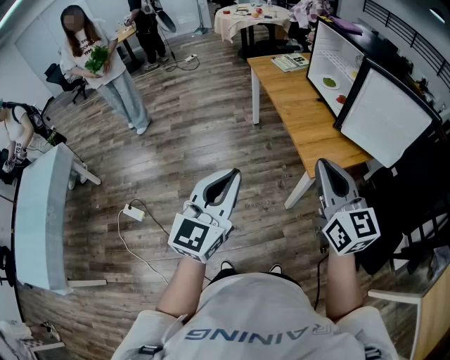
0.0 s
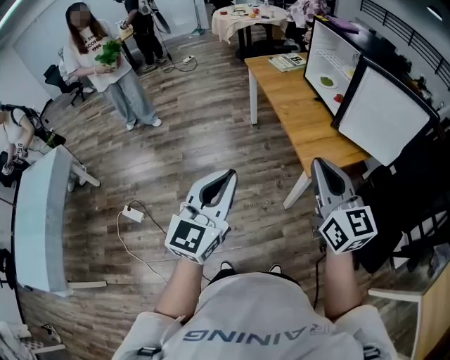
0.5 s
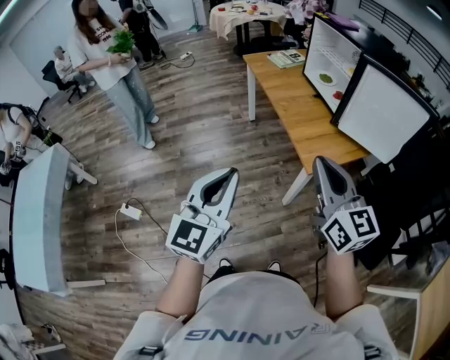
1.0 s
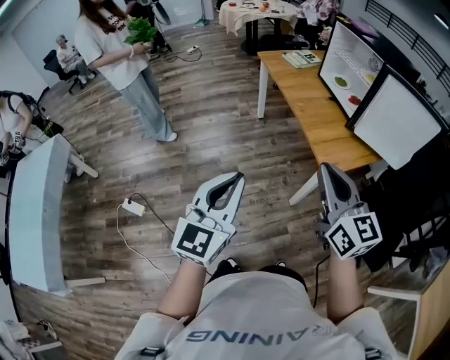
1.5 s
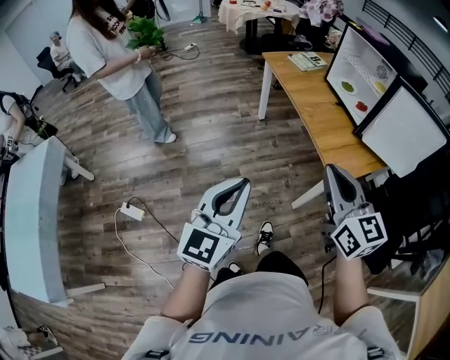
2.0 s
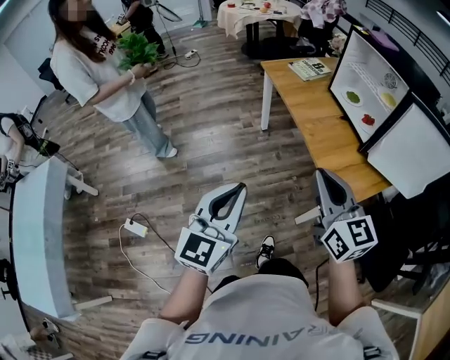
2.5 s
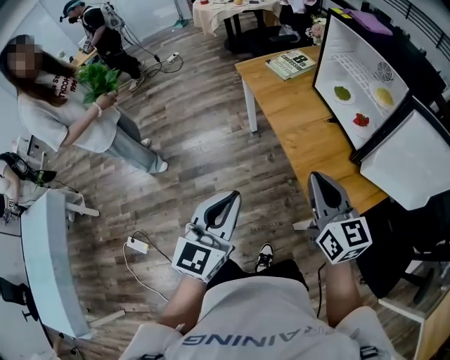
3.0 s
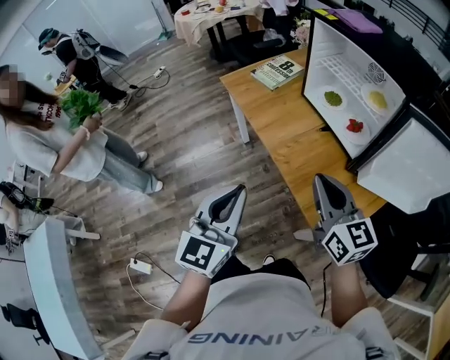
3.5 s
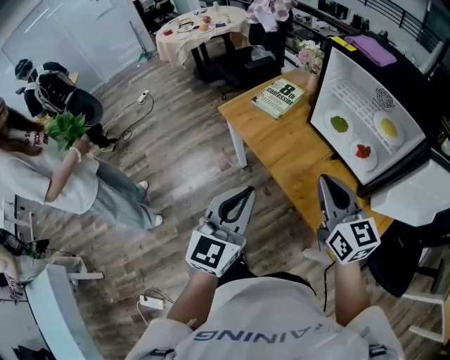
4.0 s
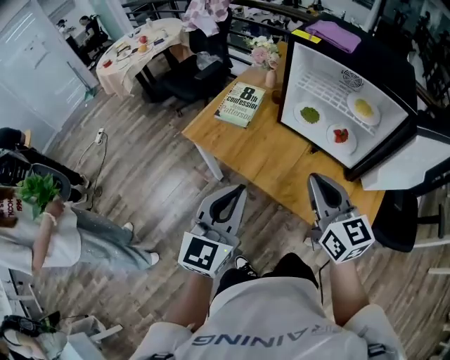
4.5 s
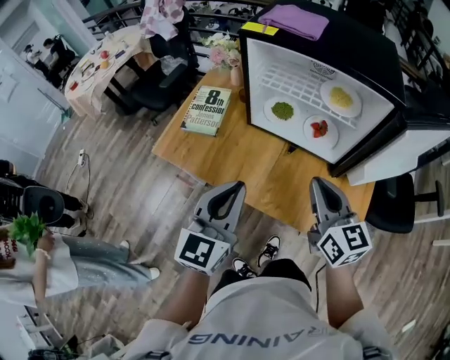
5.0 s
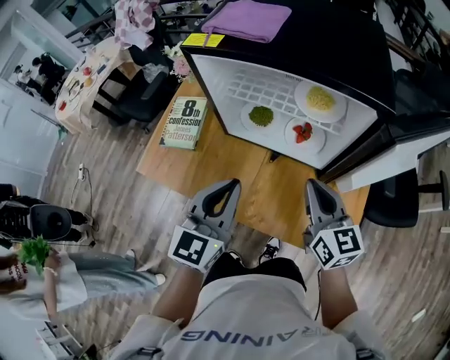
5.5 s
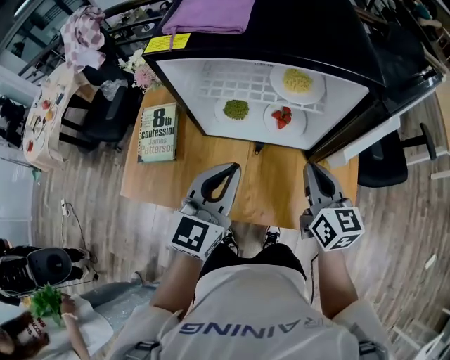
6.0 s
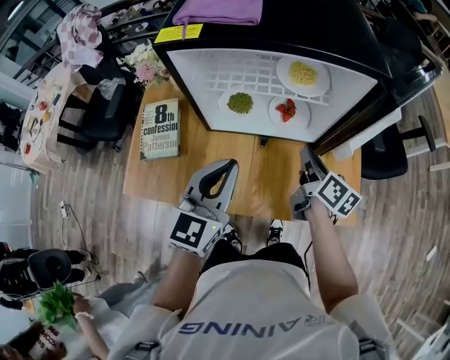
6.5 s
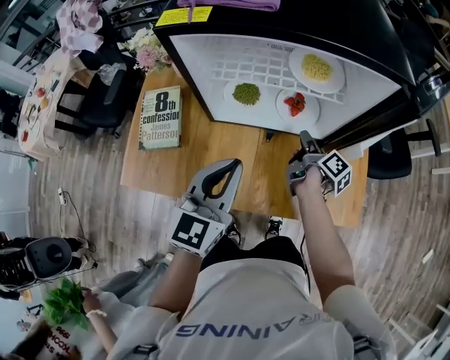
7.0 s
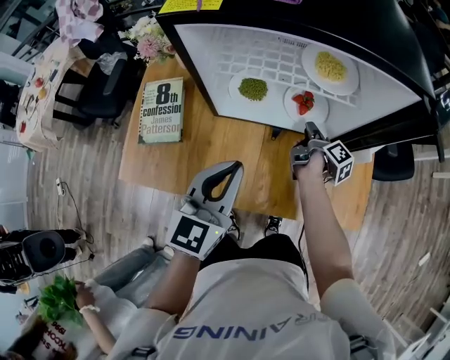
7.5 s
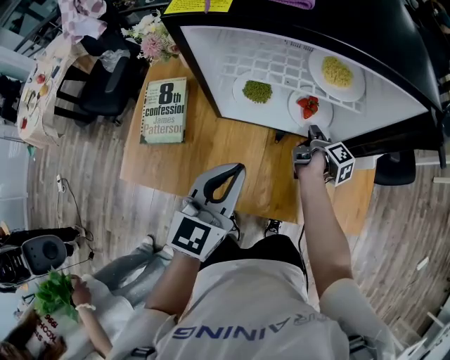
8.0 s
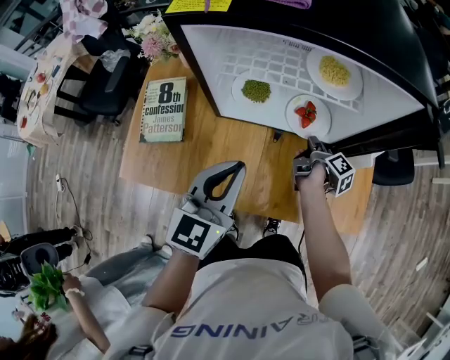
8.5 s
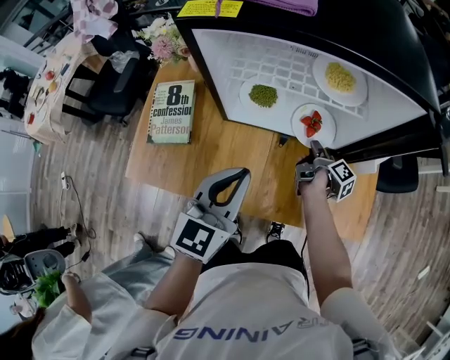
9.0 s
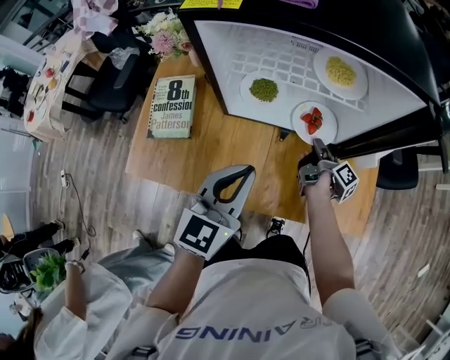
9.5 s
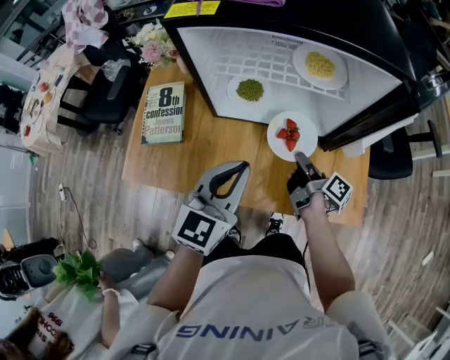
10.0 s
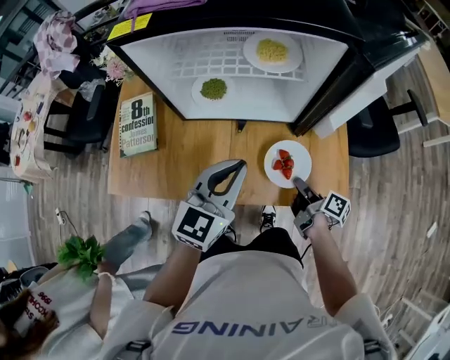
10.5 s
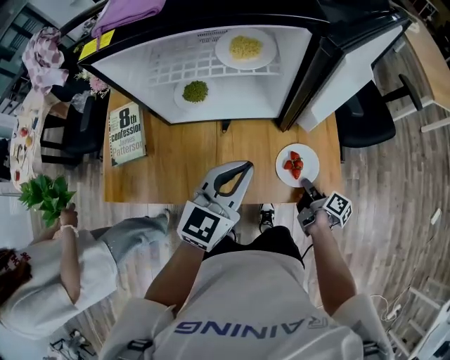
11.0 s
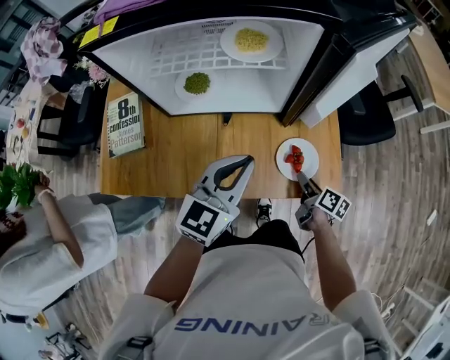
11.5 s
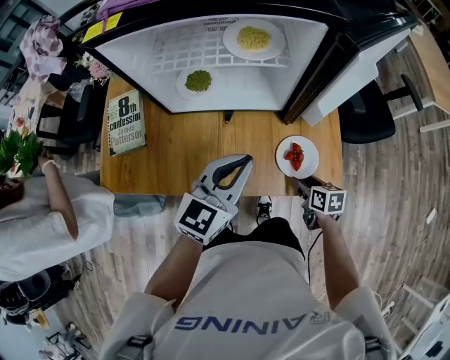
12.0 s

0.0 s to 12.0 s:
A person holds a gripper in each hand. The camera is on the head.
0.0 to 2.0 s: The grippers both shift to the left by roughly 10 cm.
2.0 to 4.0 s: Both grippers are carried forward, roughly 50 cm.
4.0 to 6.0 s: The left gripper moves about 30 cm, and turns by some 50 degrees; the right gripper ends up about 20 cm from where it was, and changes its angle by some 50 degrees.
6.0 to 8.0 s: The right gripper travels downward and forward by some 25 cm, and twists approximately 70 degrees clockwise, seen from behind. The left gripper is displaced downward by approximately 5 cm.
8.0 to 10.0 s: The right gripper goes roughly 15 cm backward and upward, and turns by about 30 degrees.
10.0 to 12.0 s: The left gripper travels to the right by roughly 10 cm. Meanwhile the right gripper is displaced to the right, backward and downward by some 25 cm, tilts its fingers some 30 degrees downward, and opens its fingers.

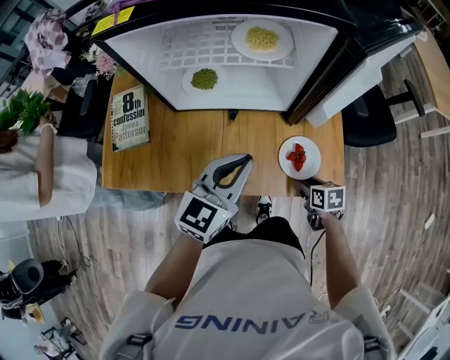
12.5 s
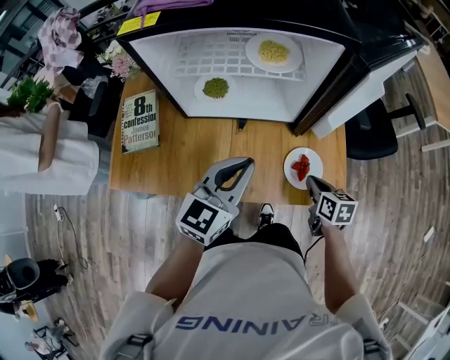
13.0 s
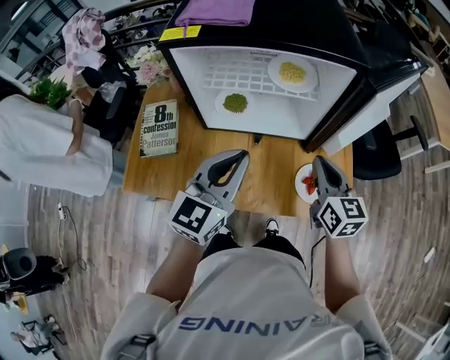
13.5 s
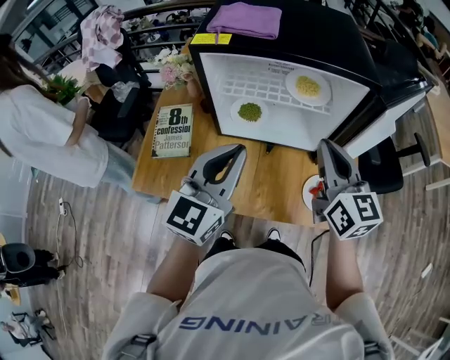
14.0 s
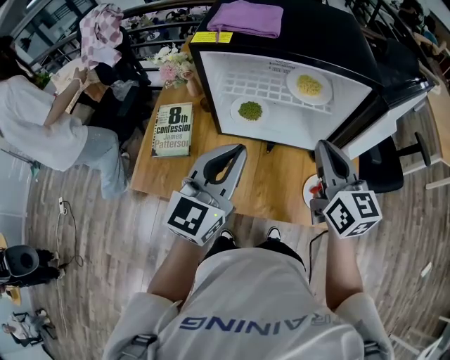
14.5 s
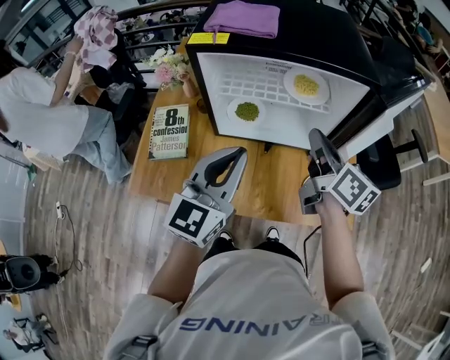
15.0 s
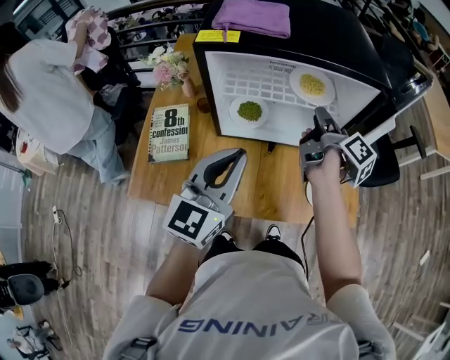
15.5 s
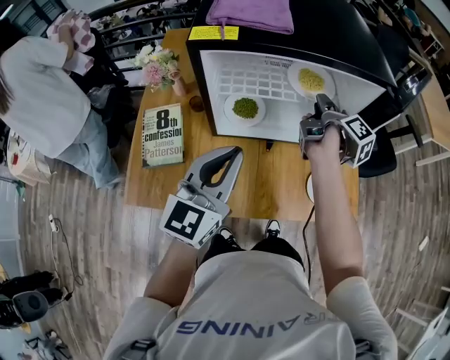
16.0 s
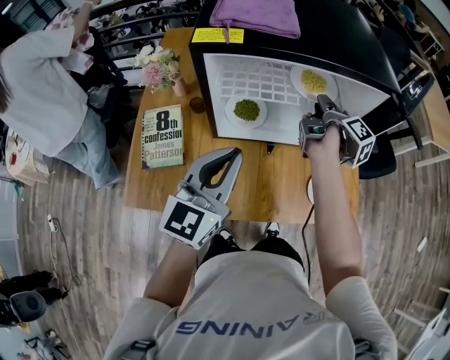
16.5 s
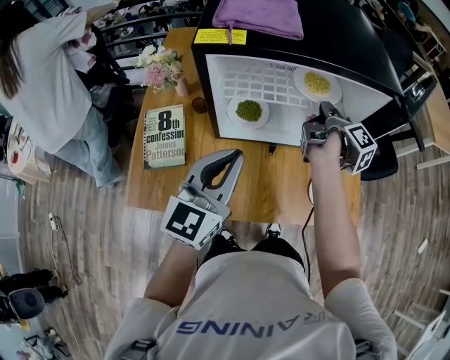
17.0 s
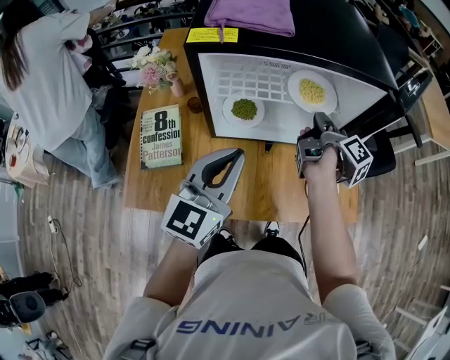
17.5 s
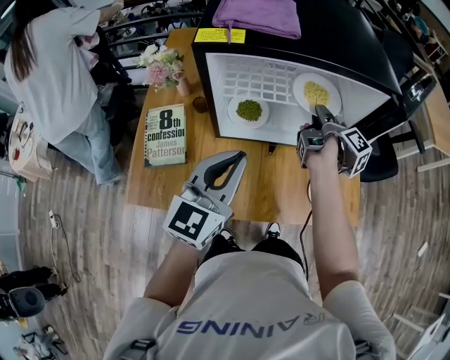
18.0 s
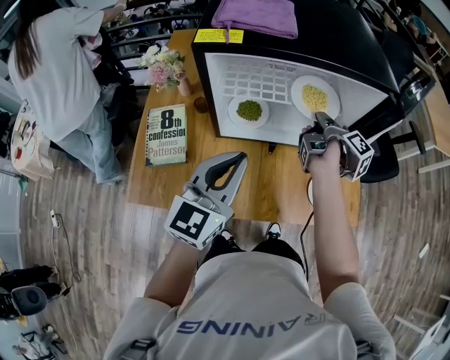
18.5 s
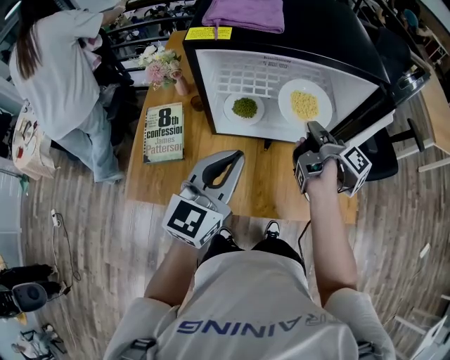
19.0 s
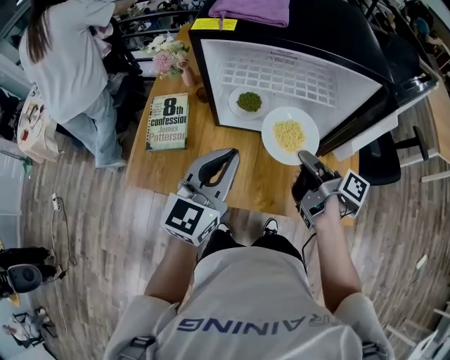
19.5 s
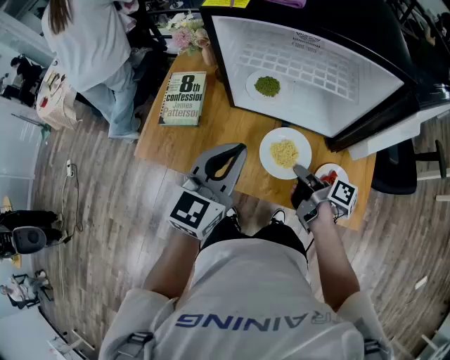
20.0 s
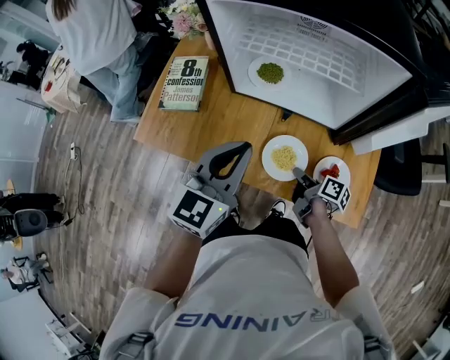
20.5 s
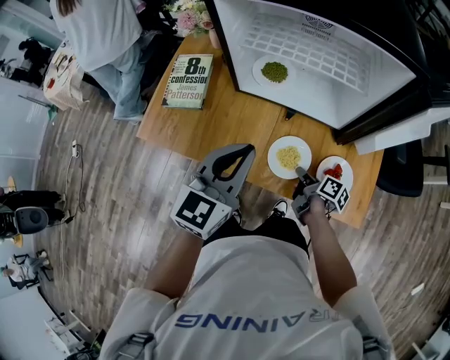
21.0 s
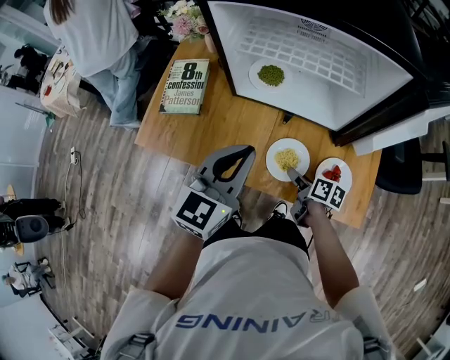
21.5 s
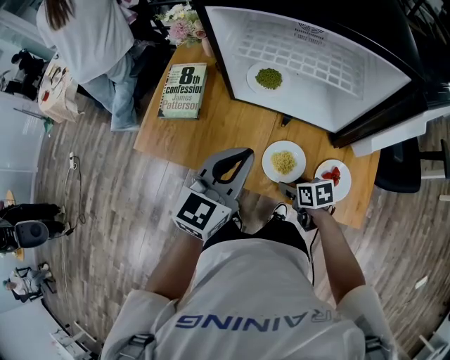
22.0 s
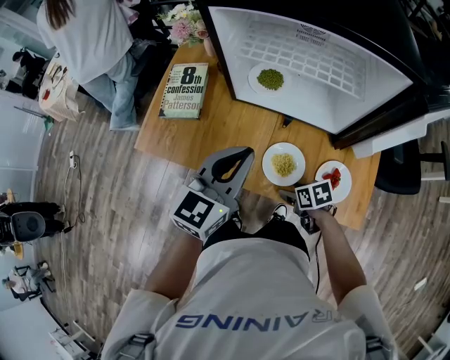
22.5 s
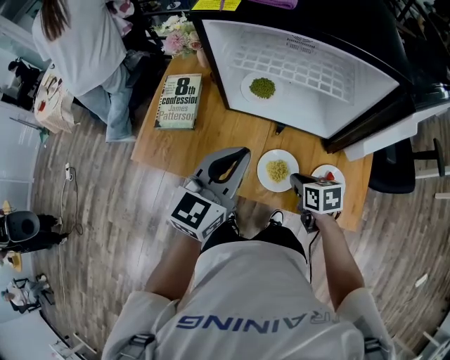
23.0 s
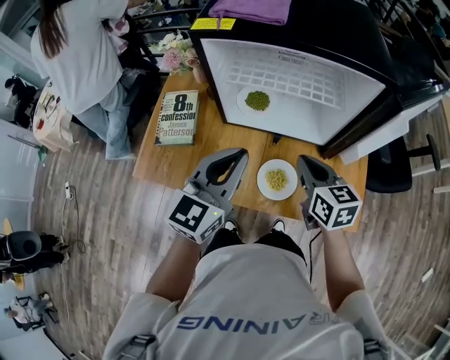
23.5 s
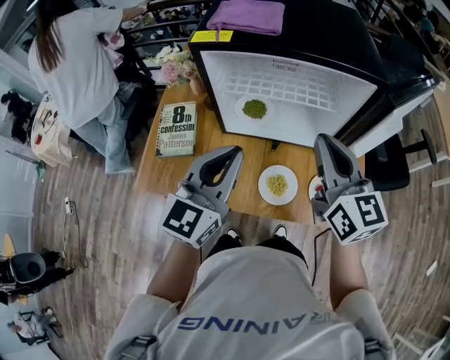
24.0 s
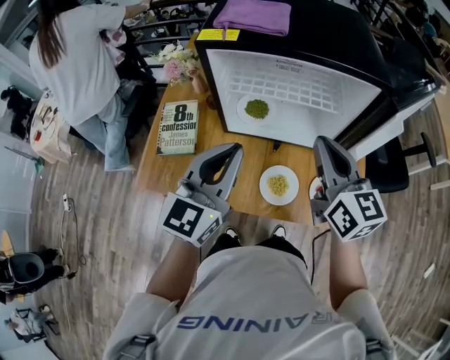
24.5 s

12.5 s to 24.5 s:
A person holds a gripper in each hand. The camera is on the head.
12.5 to 14.5 s: The left gripper shifts about 20 cm upward and to the left, and swivels roughly 20 degrees; the right gripper heads upward and to the left, covering about 40 cm, tips its fingers upward by roughly 50 degrees, and closes.
14.5 to 16.5 s: The left gripper ends up roughly 5 cm from where it was. Meanwhile the right gripper shifts approximately 20 cm forward and downward, and twists approximately 70 degrees clockwise, seen from behind.
16.5 to 18.5 s: The grippers stay close to where they were, moving slightly.
18.5 to 20.5 s: The right gripper is displaced downward by about 20 cm, and changes its angle by some 50 degrees, while the left gripper shifts by some 10 cm.
20.5 to 22.5 s: The right gripper moves some 5 cm, twists roughly 50 degrees counterclockwise, seen from behind, and opens its fingers.
22.5 to 24.5 s: The right gripper travels upward by approximately 40 cm, tilts its fingers roughly 50 degrees upward, and closes. The left gripper moves upward, about 10 cm.

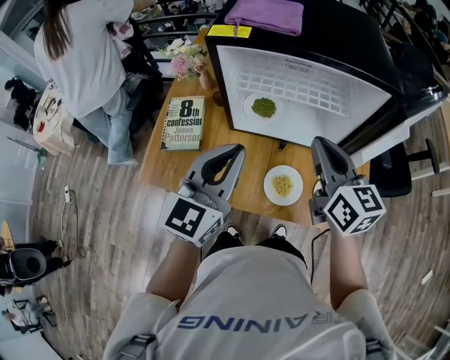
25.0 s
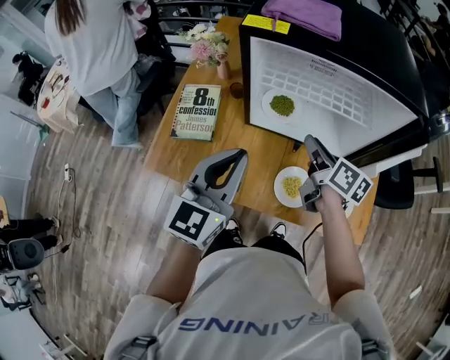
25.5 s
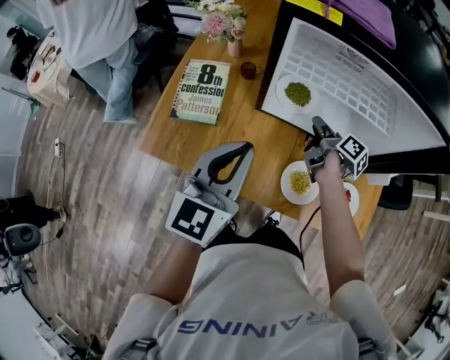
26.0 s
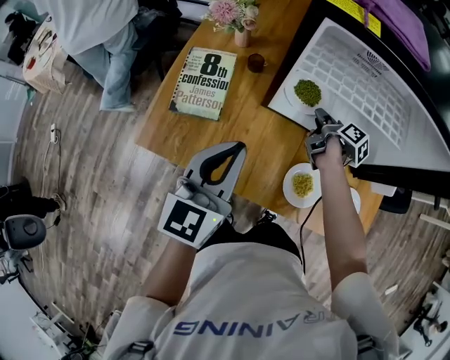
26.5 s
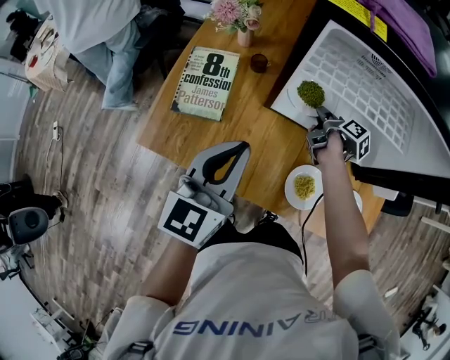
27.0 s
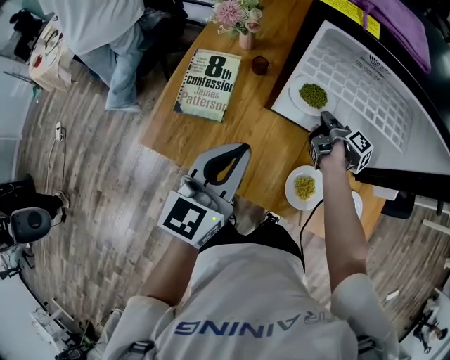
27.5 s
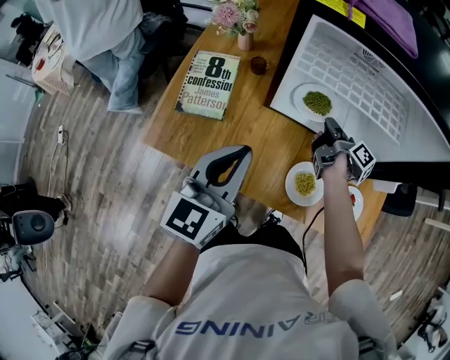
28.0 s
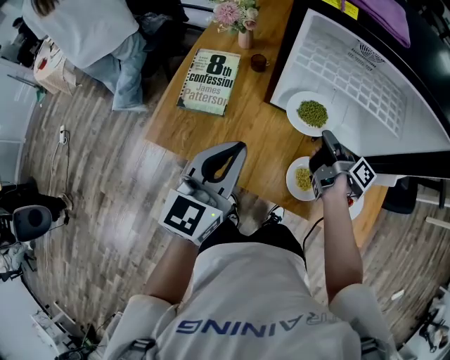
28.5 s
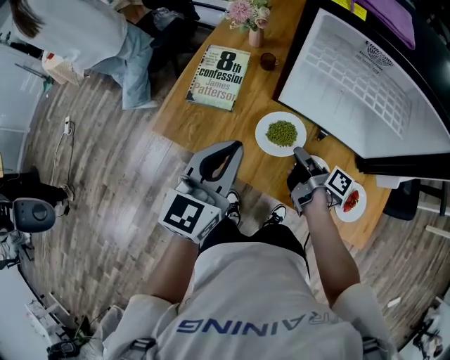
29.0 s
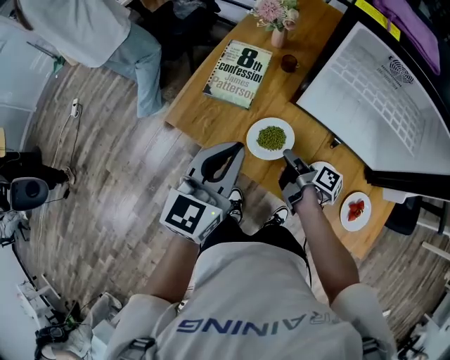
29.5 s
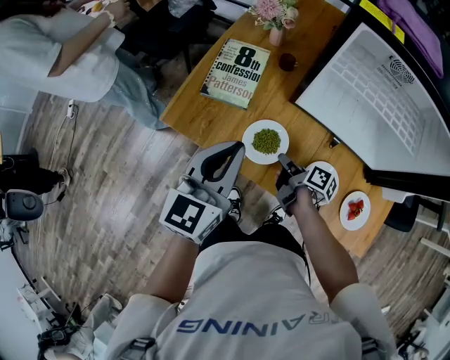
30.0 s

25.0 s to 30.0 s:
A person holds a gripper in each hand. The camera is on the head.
25.0 to 27.5 s: The right gripper heads downward and forward, covering some 35 cm, twists about 70 degrees clockwise, seen from behind, and opens and closes again. The left gripper travels downward and to the left by some 15 cm.
27.5 to 30.0 s: The left gripper is displaced to the left and backward by approximately 10 cm; the right gripper heads backward and to the left, covering about 25 cm, and turns by some 30 degrees.
